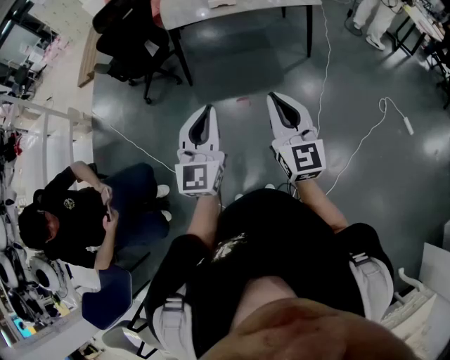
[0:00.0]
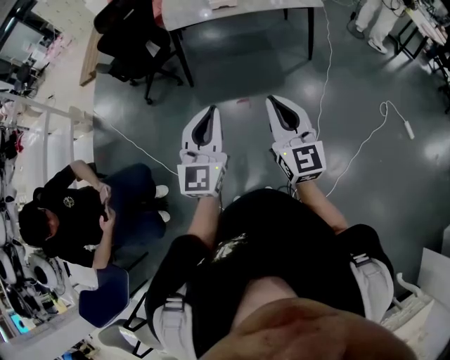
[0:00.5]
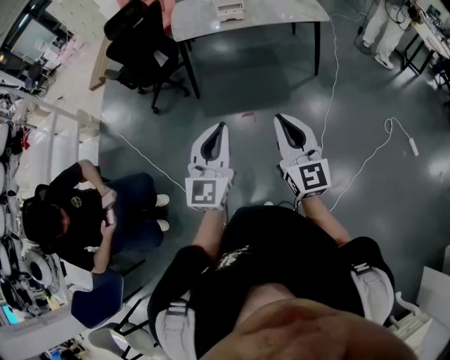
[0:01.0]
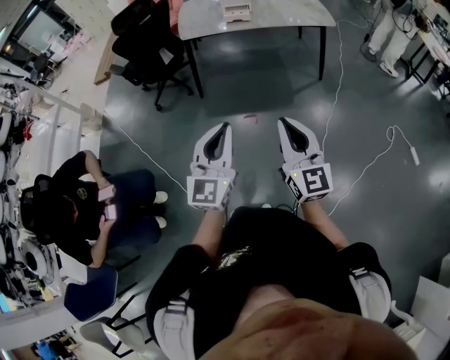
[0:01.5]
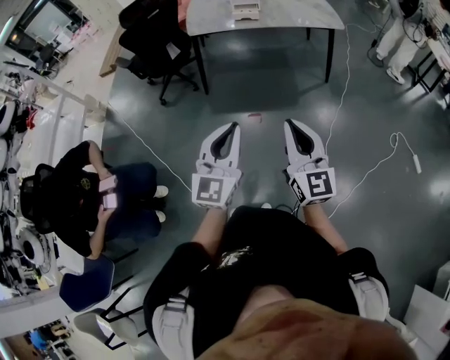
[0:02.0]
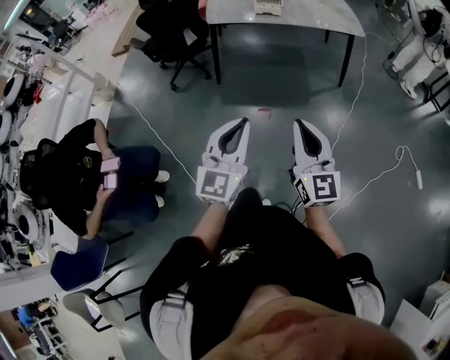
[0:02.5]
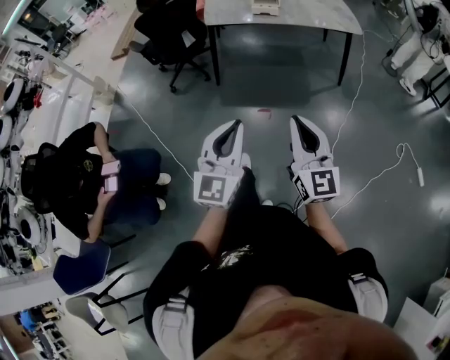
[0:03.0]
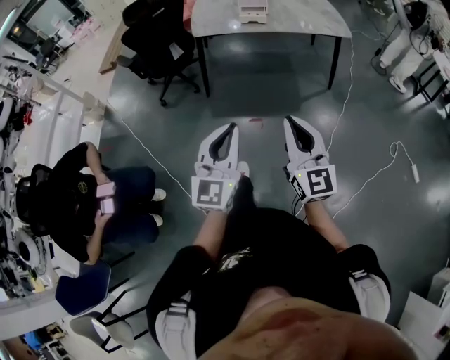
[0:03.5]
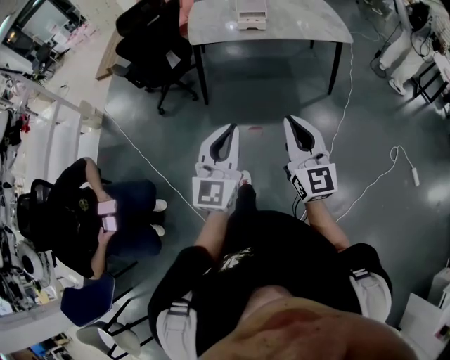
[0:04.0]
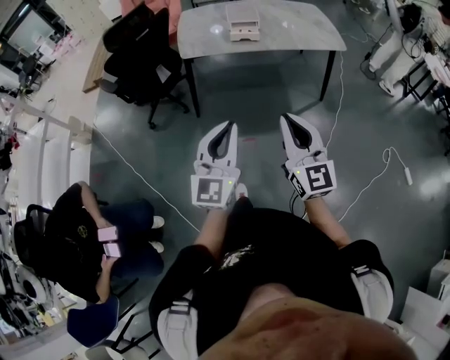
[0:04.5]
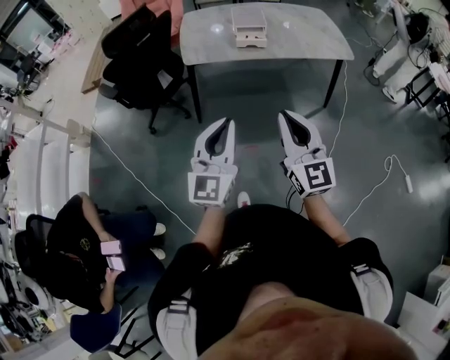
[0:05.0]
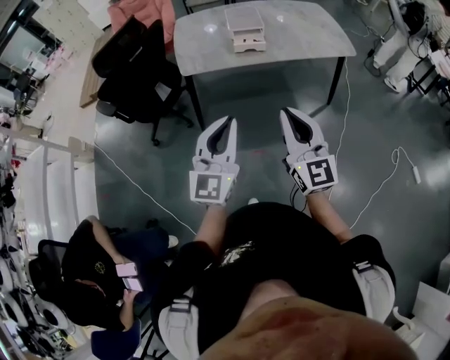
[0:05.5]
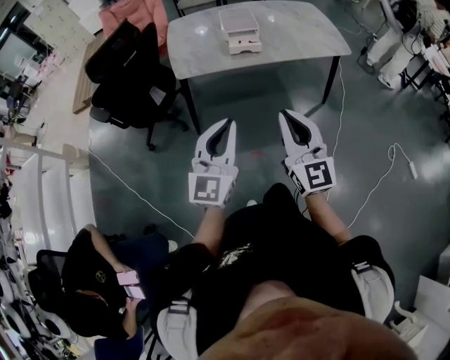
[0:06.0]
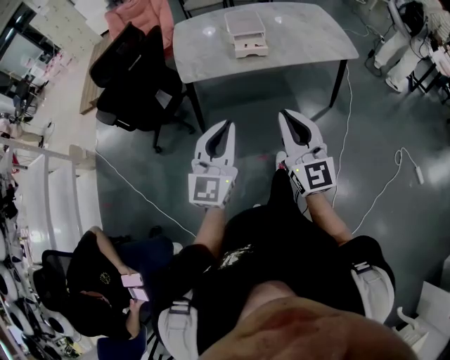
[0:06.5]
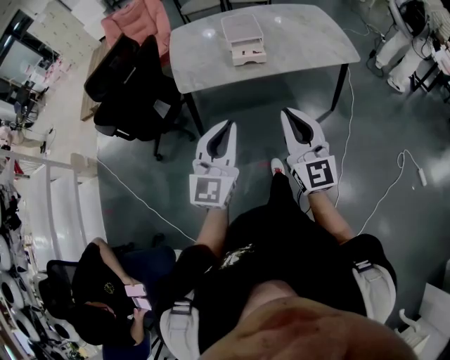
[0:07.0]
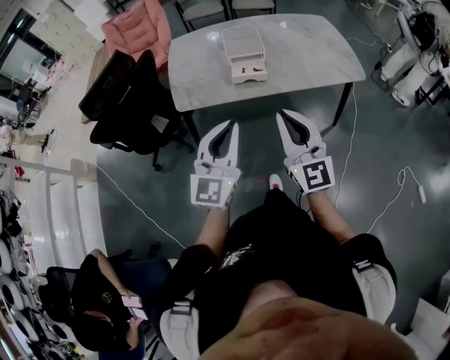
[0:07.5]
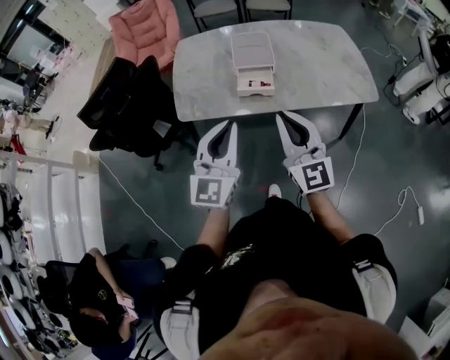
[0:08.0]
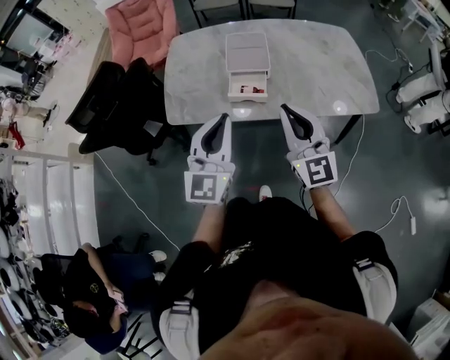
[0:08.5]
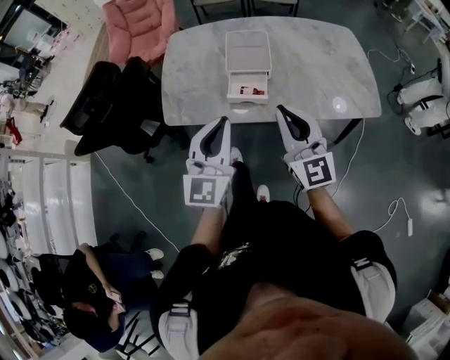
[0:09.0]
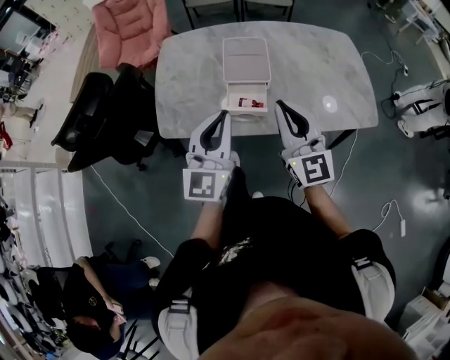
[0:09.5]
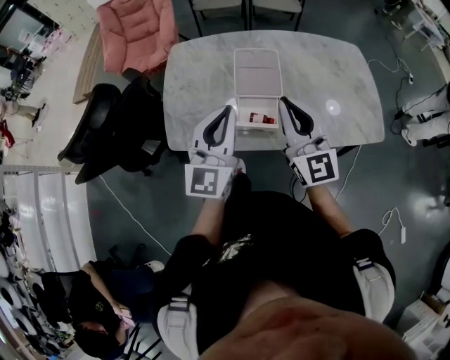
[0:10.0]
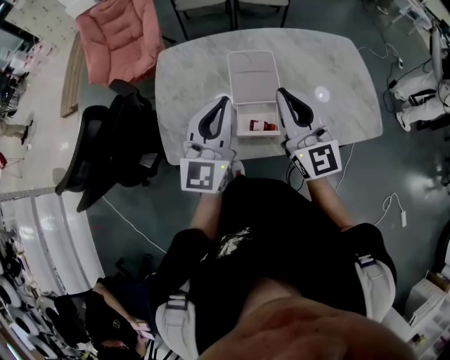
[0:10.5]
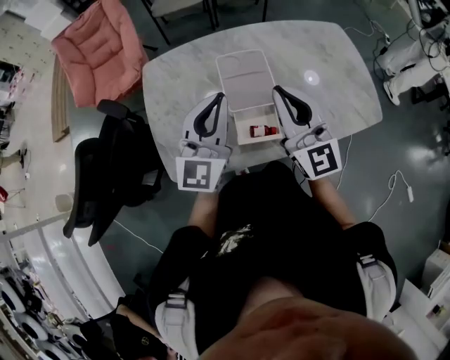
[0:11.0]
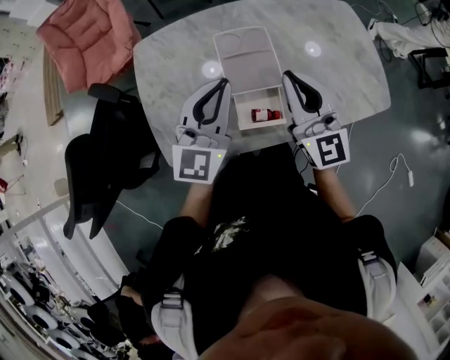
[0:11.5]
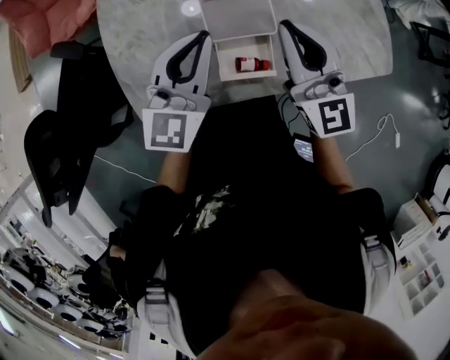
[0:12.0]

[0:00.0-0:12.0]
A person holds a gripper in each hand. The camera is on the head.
0.0 to 2.0 s: Both grippers travel together to the right, about 10 cm.
2.0 to 4.0 s: Both grippers travel together forward, approximately 15 cm.
4.0 to 6.0 s: The grippers both shift forward by roughly 30 cm.
6.0 to 8.0 s: Both grippers travel together forward, some 35 cm.
8.0 to 10.0 s: The two grippers go about 30 cm forward.
10.0 to 12.0 s: Both grippers move forward and downward, approximately 25 cm. The left gripper changes its angle by approximately 20 degrees.

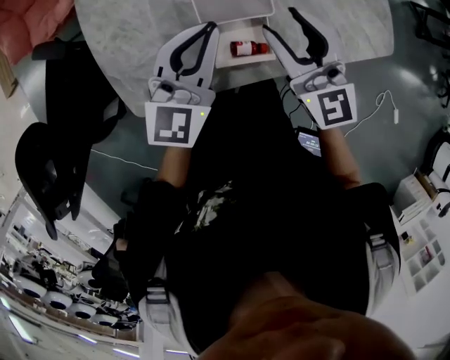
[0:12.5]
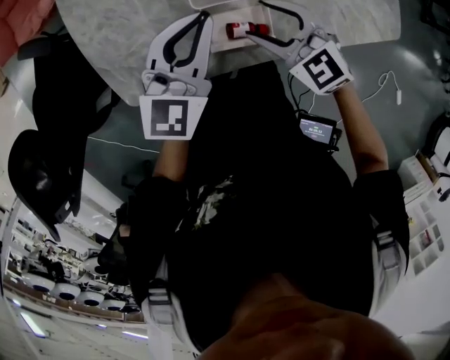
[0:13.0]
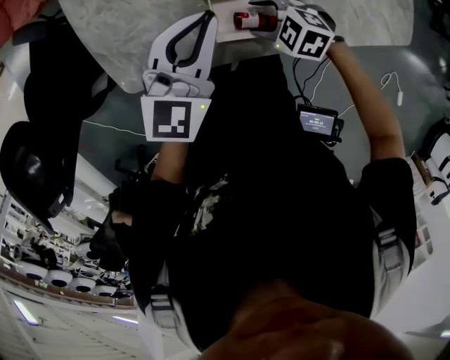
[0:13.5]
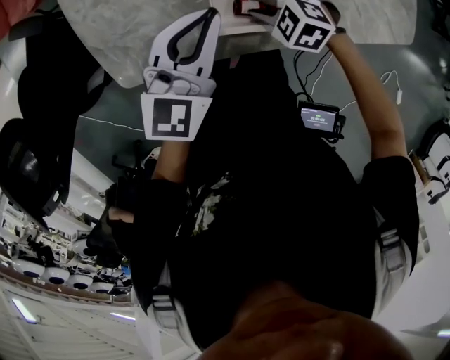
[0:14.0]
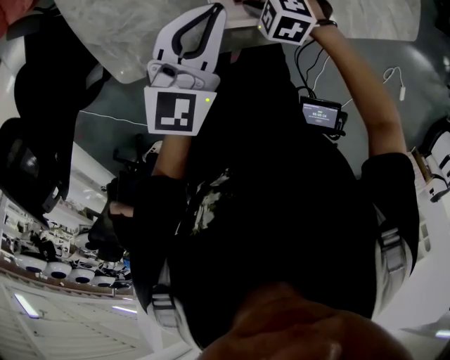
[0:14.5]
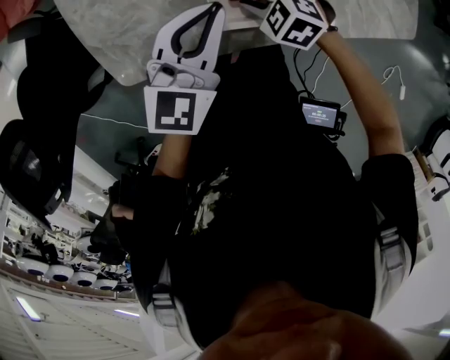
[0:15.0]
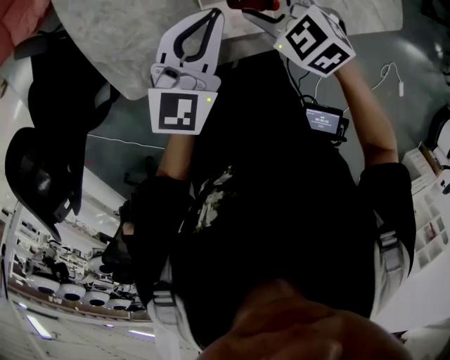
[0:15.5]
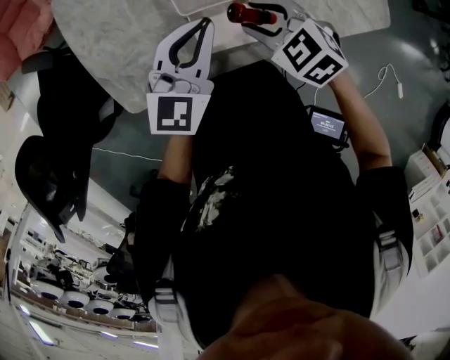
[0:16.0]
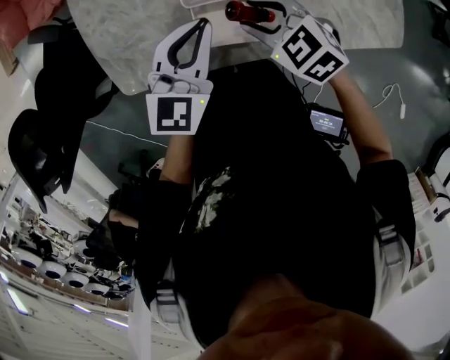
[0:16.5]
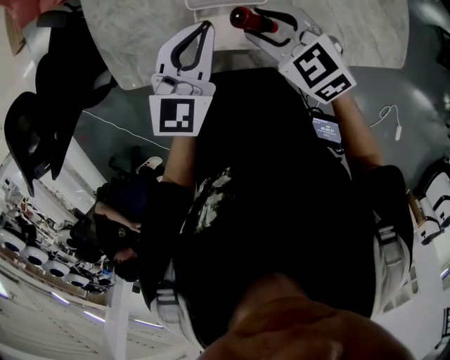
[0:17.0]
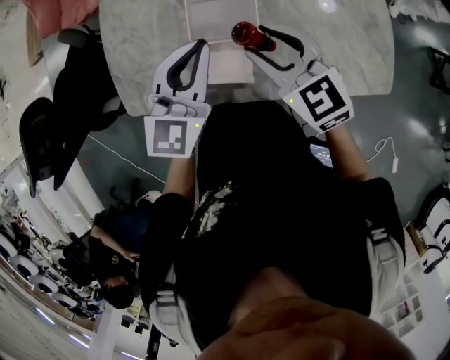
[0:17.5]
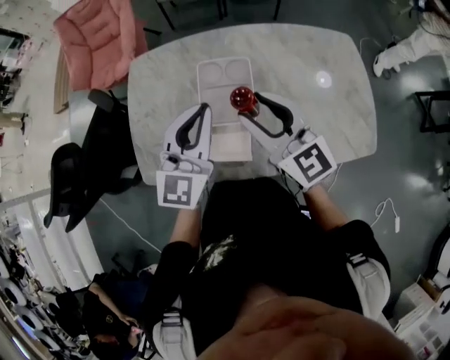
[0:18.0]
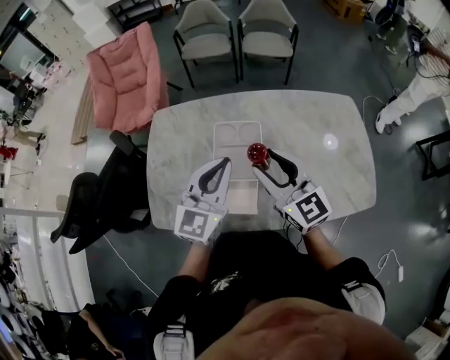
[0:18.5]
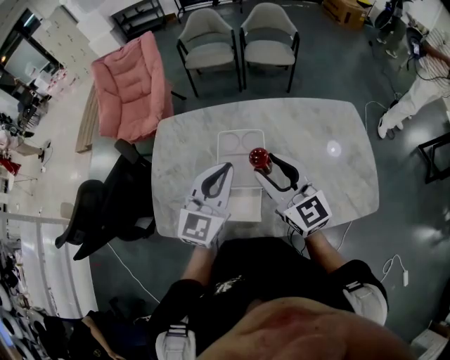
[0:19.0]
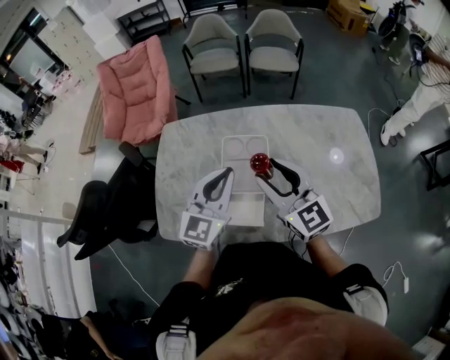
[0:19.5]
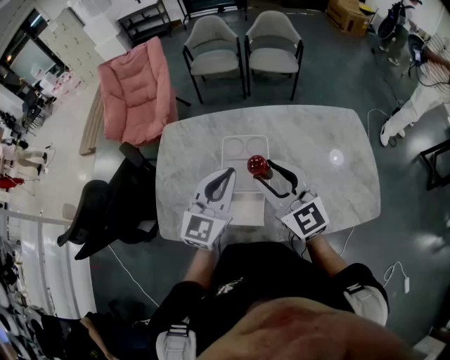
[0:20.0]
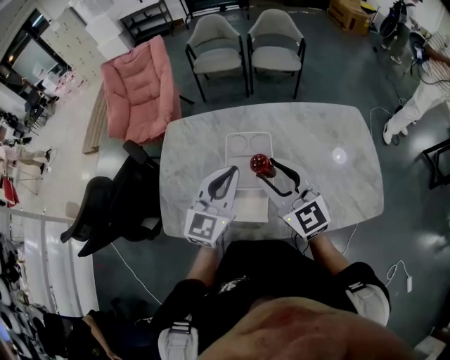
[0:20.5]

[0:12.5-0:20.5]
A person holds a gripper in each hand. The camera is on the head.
12.5 to 14.5 s: The right gripper travels downward by roughly 30 cm, and tips its fingers downward by approximately 60 degrees, while the left gripper travels downward by about 10 cm.
14.5 to 16.5 s: The left gripper moves about 5 cm. The right gripper moves upward, some 15 cm, and changes its angle by about 30 degrees.
16.5 to 18.5 s: The grippers both shift upward by approximately 20 cm. The left gripper turns by roughly 20 degrees. Meanwhile the right gripper tilts its fingers approximately 50 degrees upward.
18.5 to 20.5 s: The grippers stay close to where they were, moving slightly.

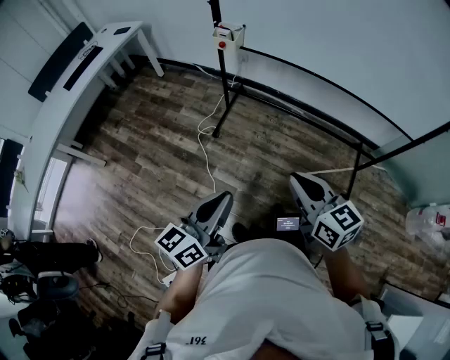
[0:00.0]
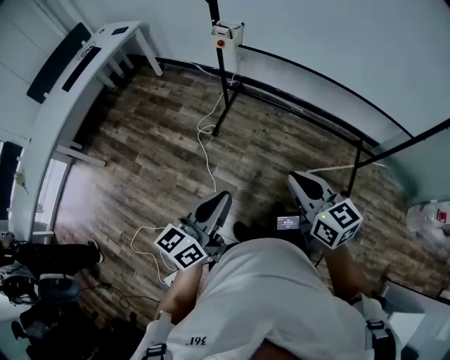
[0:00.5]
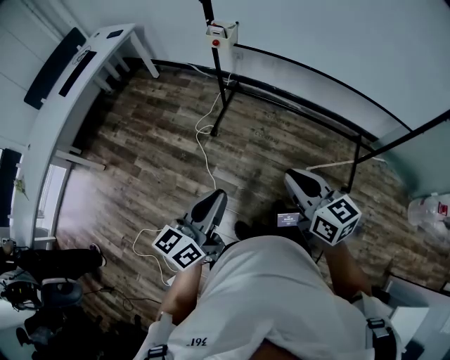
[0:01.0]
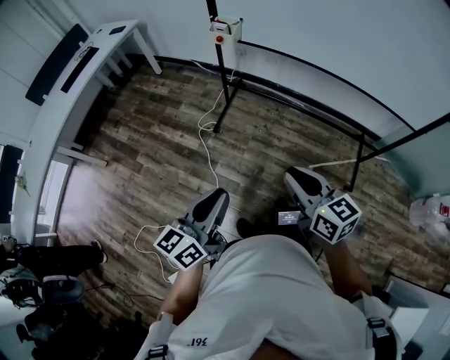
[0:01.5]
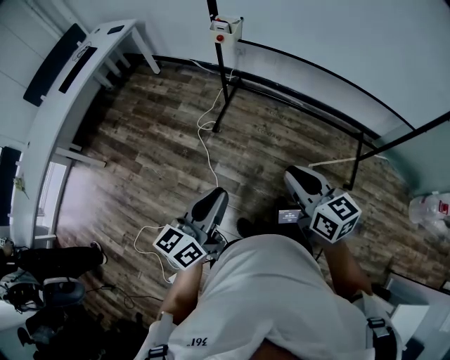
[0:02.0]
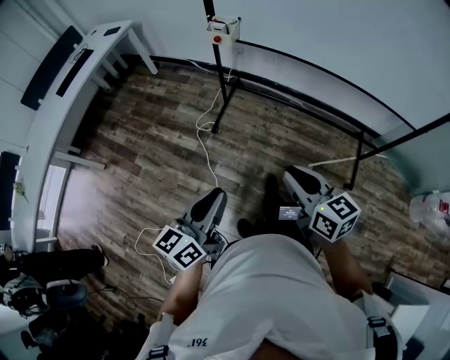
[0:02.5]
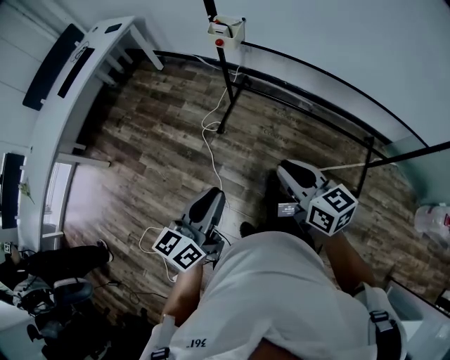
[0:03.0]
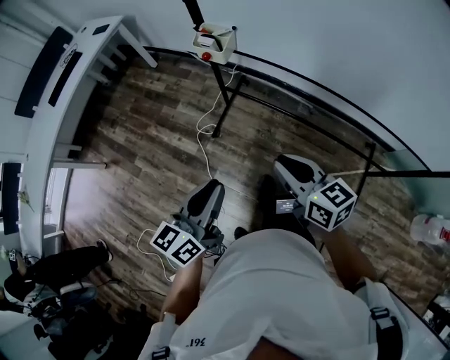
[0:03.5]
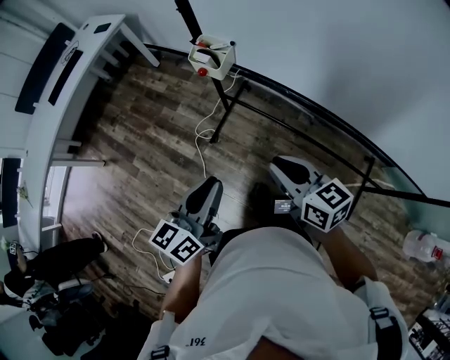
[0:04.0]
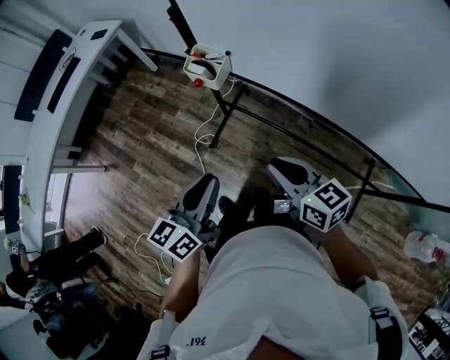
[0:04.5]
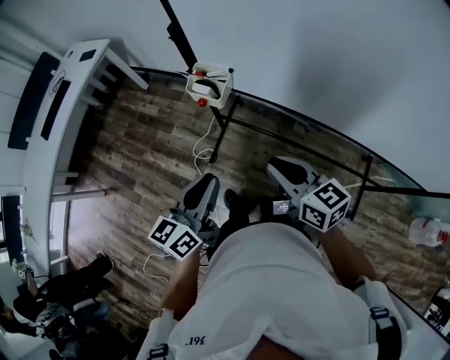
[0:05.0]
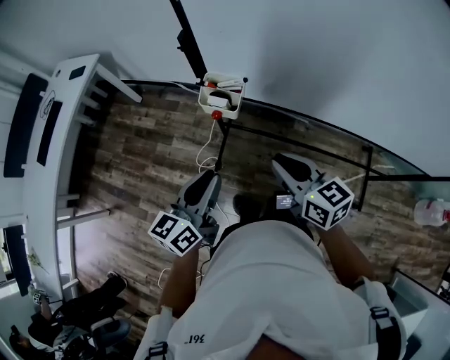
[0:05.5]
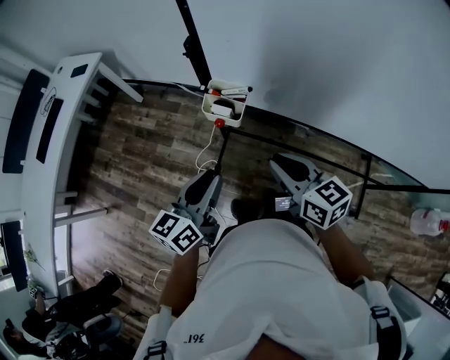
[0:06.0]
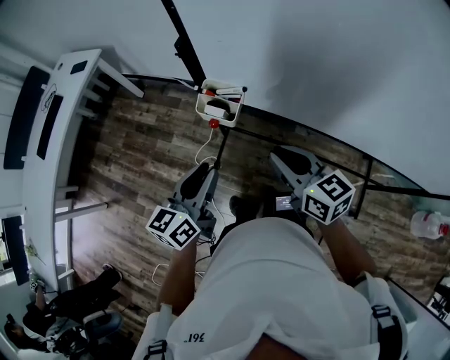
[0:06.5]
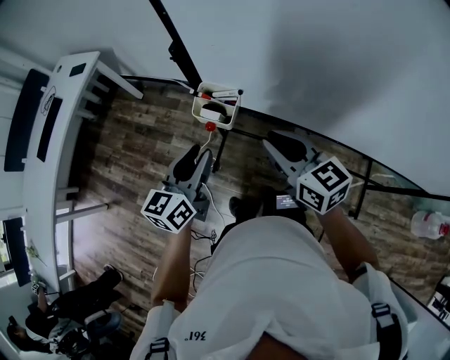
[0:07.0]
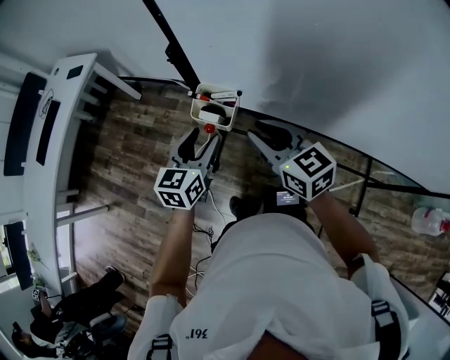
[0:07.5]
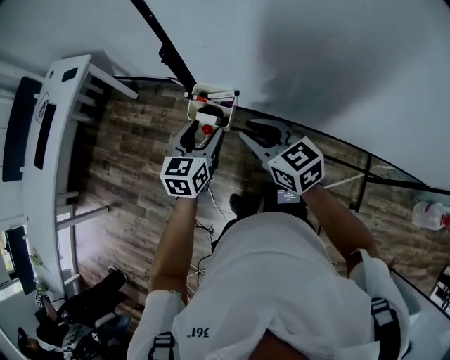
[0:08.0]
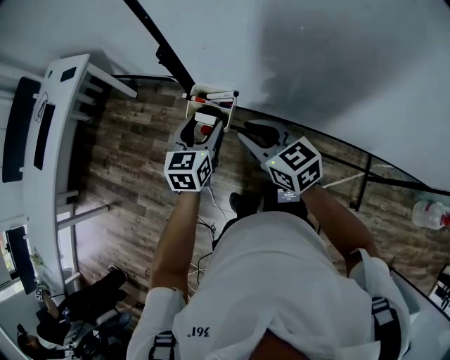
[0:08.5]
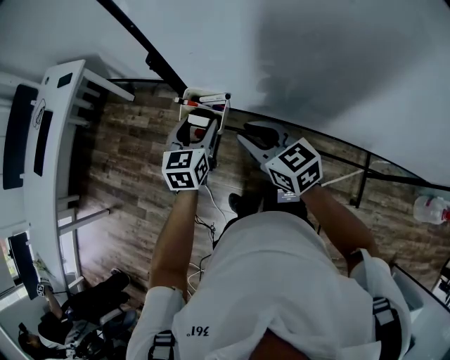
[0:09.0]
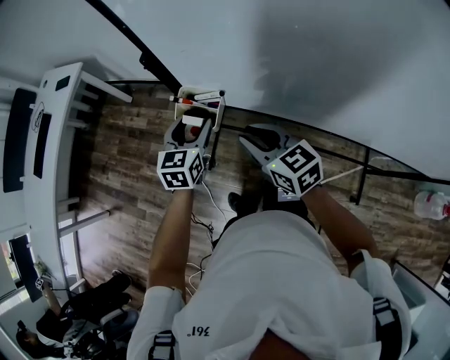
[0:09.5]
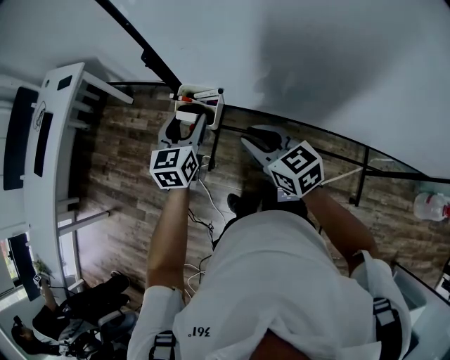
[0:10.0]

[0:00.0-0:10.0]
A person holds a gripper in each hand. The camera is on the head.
0.0 to 2.0 s: The grippers stay close to where they were, moving slightly.
2.0 to 4.0 s: The two grippers go about 35 cm forward.
4.0 to 6.0 s: The two grippers go roughly 20 cm forward and to the left.
6.0 to 8.0 s: Both grippers travel together forward, approximately 15 cm. The left gripper swivels roughly 30 degrees, and opens.
8.0 to 10.0 s: The right gripper moves roughly 5 cm.
